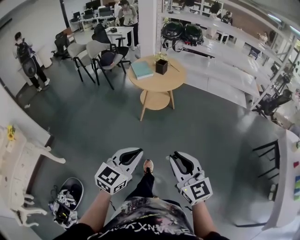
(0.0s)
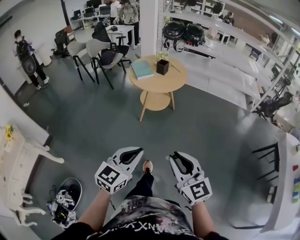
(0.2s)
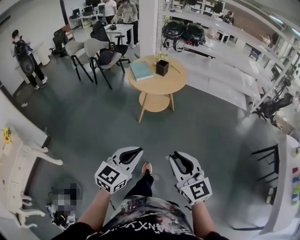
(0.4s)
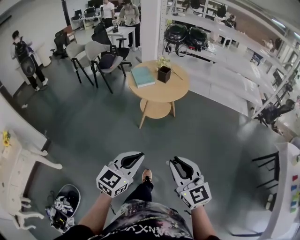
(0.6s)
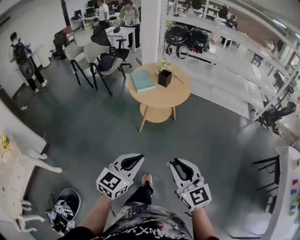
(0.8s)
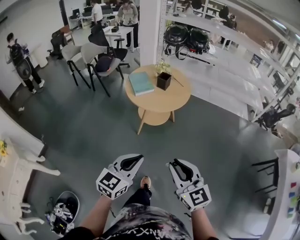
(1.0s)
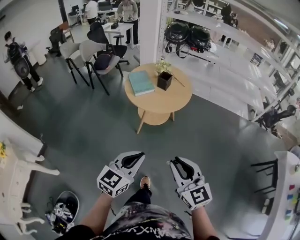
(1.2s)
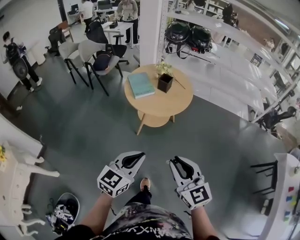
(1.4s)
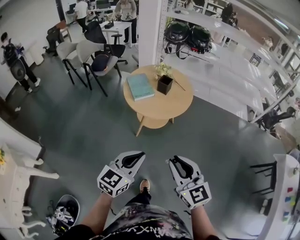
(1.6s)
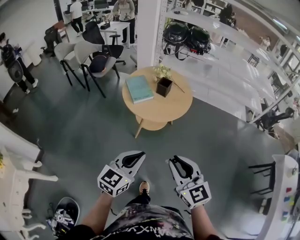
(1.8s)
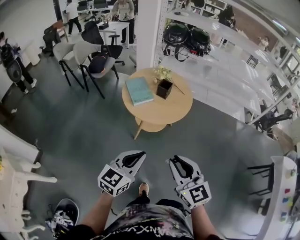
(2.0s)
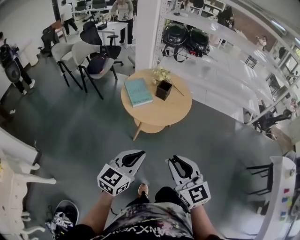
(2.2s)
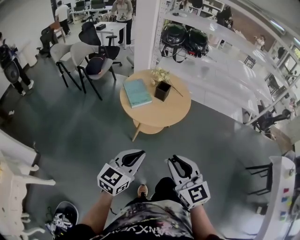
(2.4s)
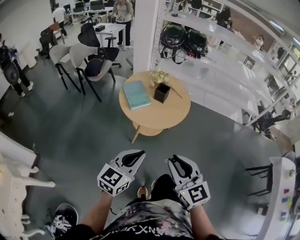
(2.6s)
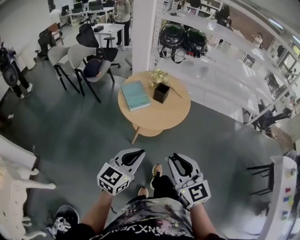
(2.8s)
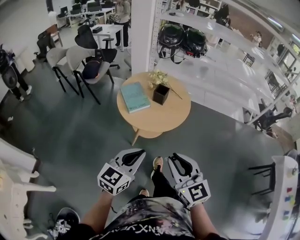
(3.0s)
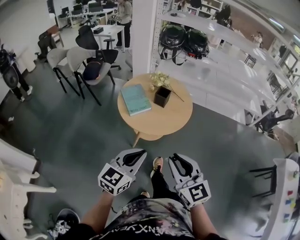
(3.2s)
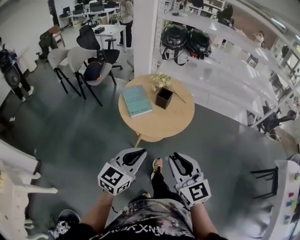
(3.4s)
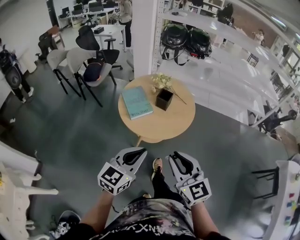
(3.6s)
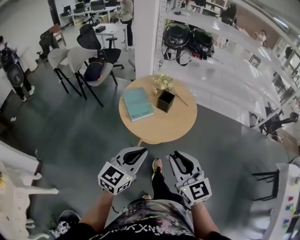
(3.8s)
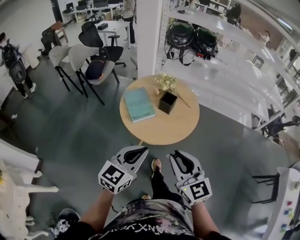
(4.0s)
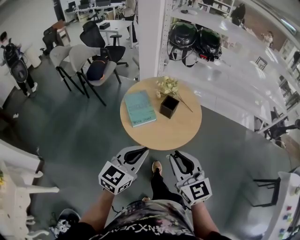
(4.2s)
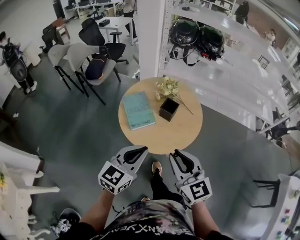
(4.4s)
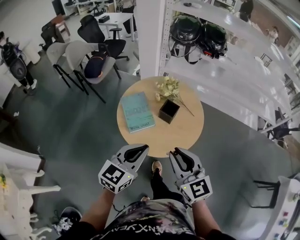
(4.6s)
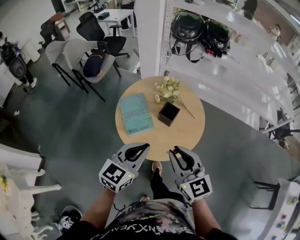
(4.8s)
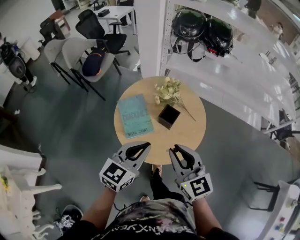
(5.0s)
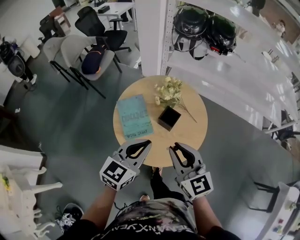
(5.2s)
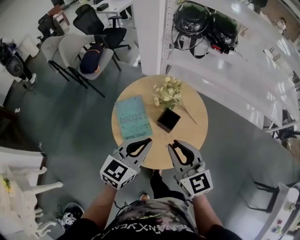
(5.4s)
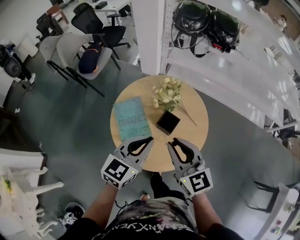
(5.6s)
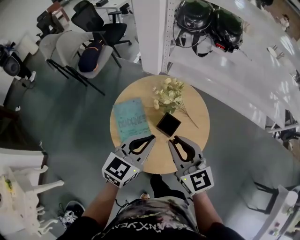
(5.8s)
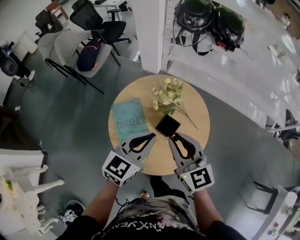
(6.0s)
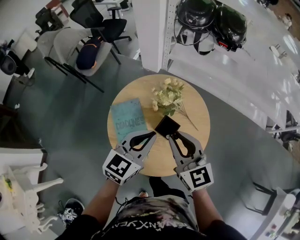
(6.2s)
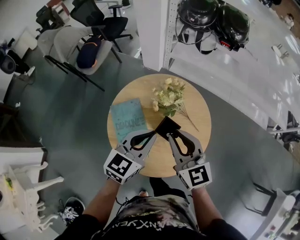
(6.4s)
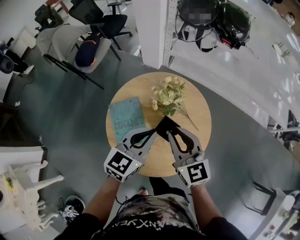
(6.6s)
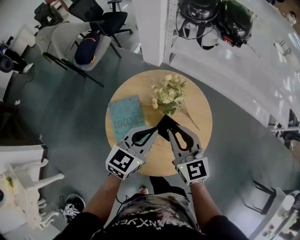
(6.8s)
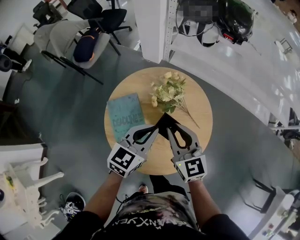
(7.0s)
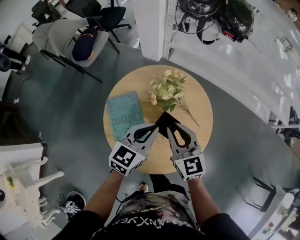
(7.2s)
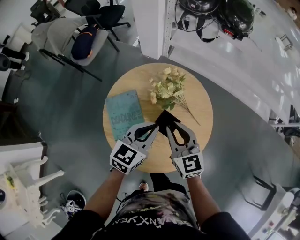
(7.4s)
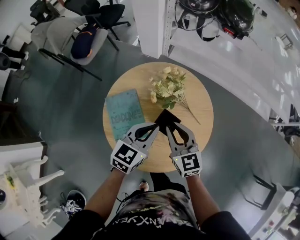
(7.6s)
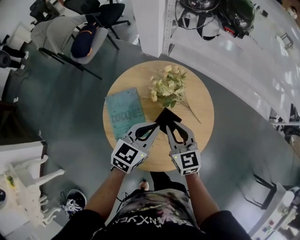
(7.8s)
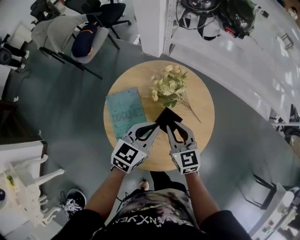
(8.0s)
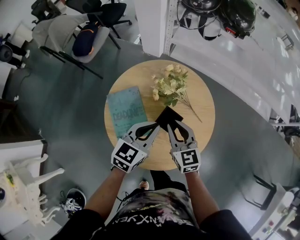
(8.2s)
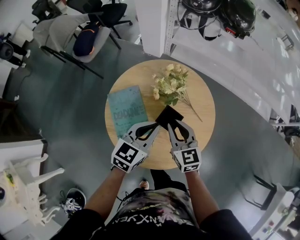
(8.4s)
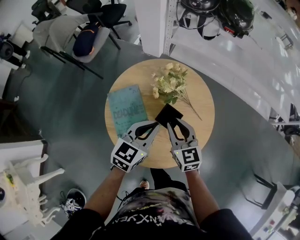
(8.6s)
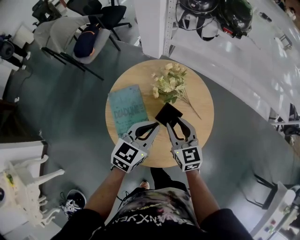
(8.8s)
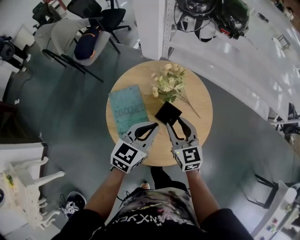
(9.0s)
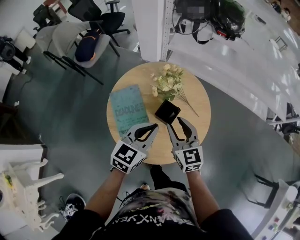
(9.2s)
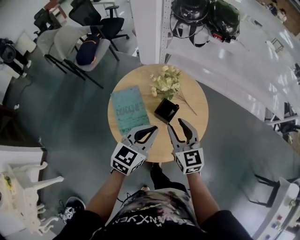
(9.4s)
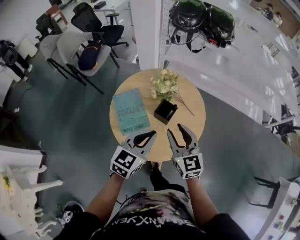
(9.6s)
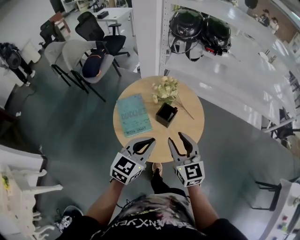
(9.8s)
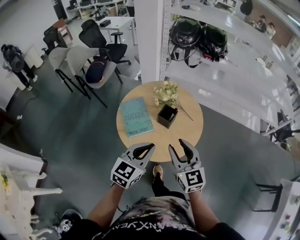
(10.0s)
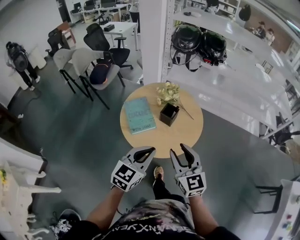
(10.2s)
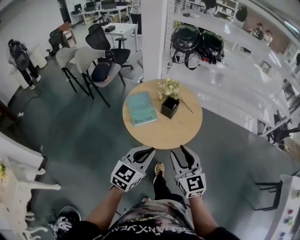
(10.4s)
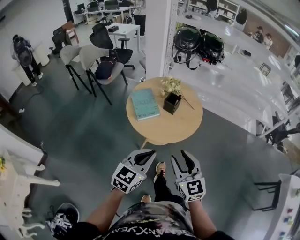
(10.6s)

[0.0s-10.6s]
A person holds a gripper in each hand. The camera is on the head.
0.0s to 1.6s: The two grippers go roughly 30 cm forward.
1.6s to 3.0s: The grippers both shift forward by approximately 10 cm.
3.0s to 4.6s: The two grippers go roughly 25 cm forward.
4.6s to 6.0s: The two grippers go approximately 25 cm forward.
6.0s to 7.6s: Both grippers move downward, roughly 10 cm.
7.6s to 9.0s: The grippers move only a little.
9.0s to 10.6s: Both grippers move backward, about 40 cm.

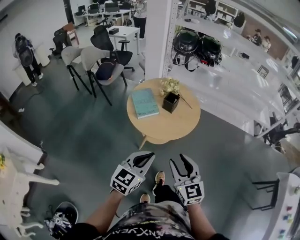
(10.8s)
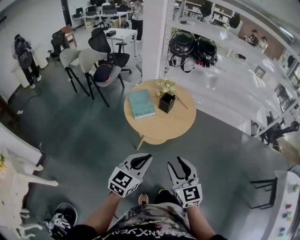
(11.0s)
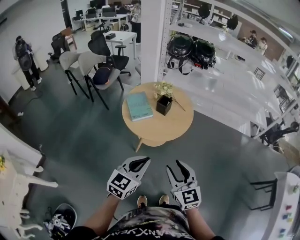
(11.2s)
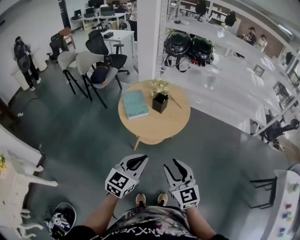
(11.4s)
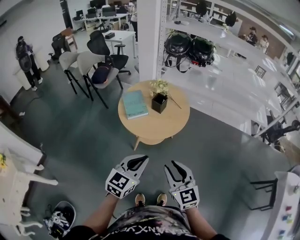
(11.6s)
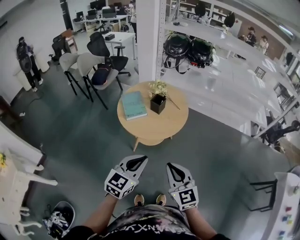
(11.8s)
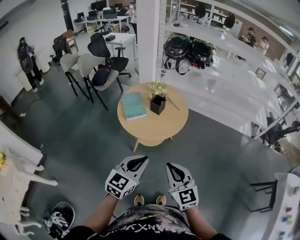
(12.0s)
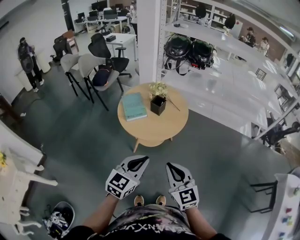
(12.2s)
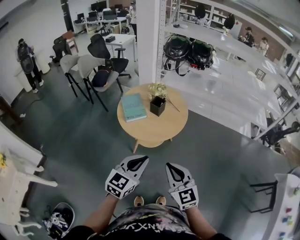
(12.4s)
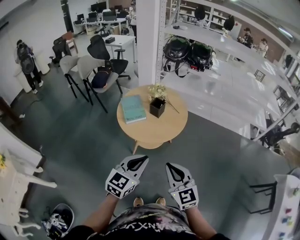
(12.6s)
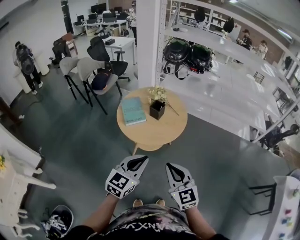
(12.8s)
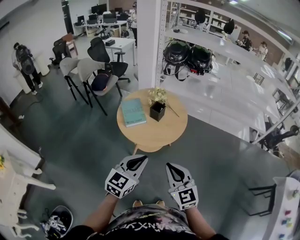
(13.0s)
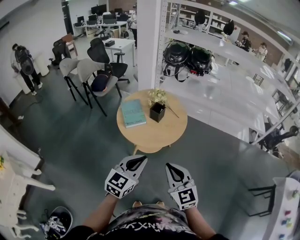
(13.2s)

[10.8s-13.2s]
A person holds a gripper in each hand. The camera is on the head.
10.8s to 12.0s: The grippers both shift to the right by about 10 cm. The right gripper closes.
12.0s to 13.2s: The grippers stay close to where they were, moving slightly.

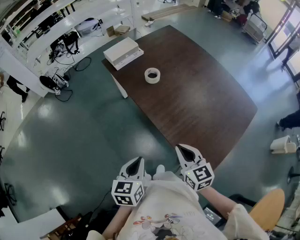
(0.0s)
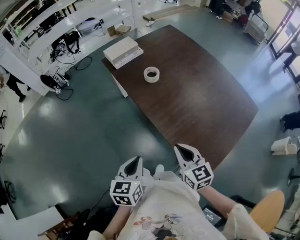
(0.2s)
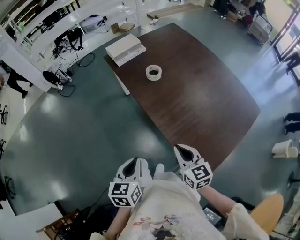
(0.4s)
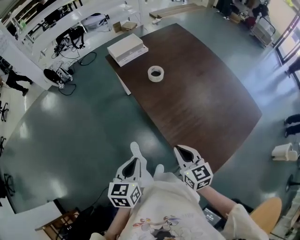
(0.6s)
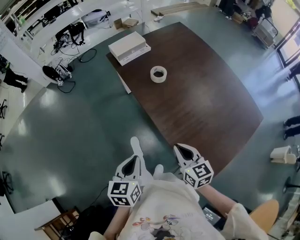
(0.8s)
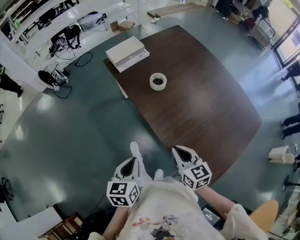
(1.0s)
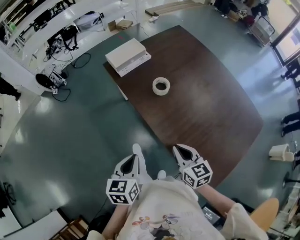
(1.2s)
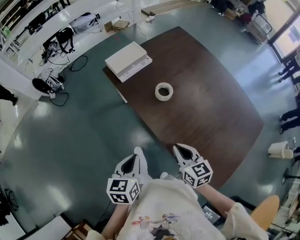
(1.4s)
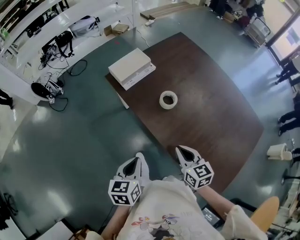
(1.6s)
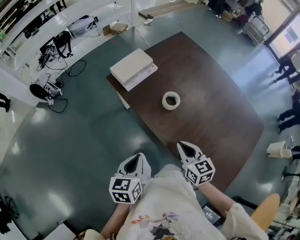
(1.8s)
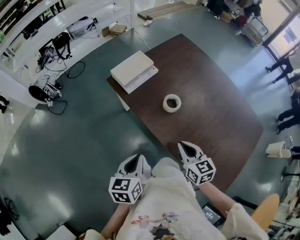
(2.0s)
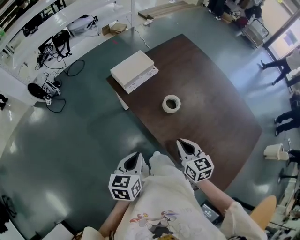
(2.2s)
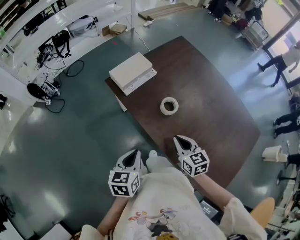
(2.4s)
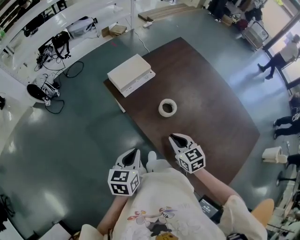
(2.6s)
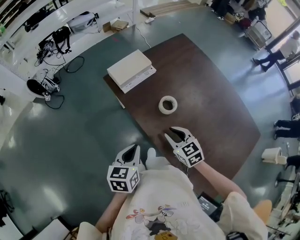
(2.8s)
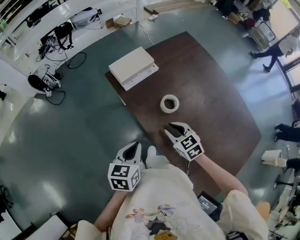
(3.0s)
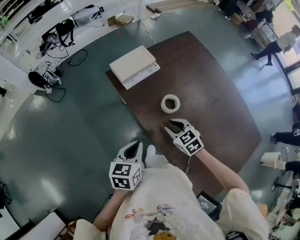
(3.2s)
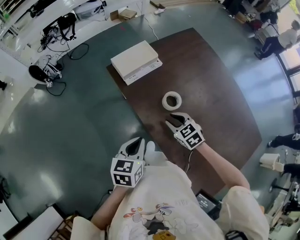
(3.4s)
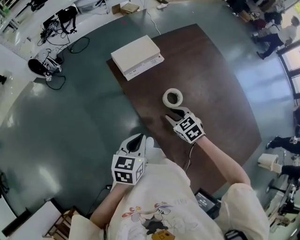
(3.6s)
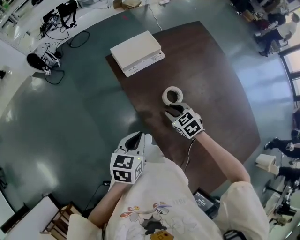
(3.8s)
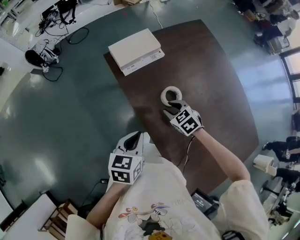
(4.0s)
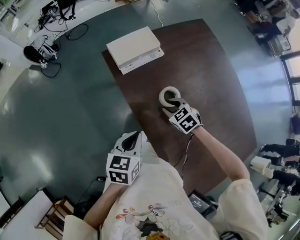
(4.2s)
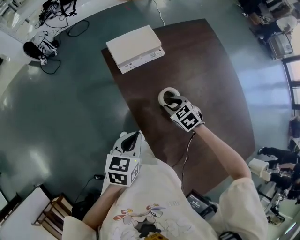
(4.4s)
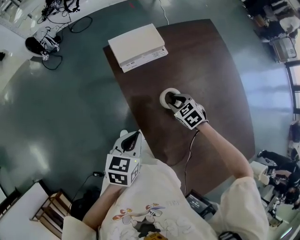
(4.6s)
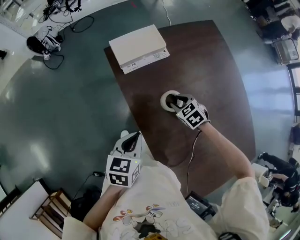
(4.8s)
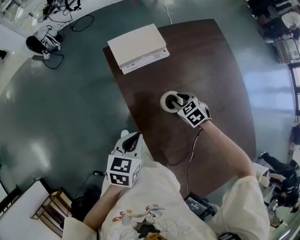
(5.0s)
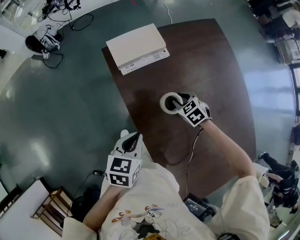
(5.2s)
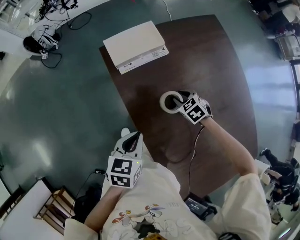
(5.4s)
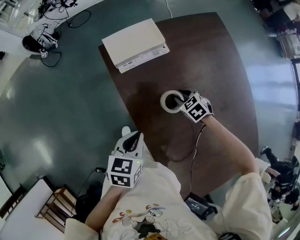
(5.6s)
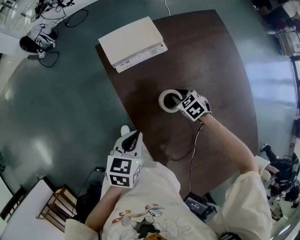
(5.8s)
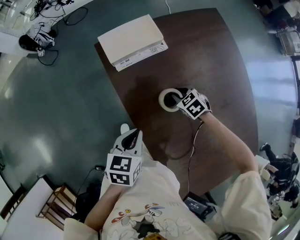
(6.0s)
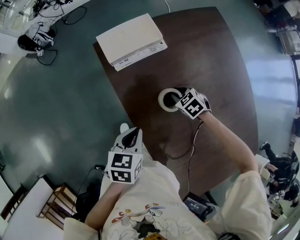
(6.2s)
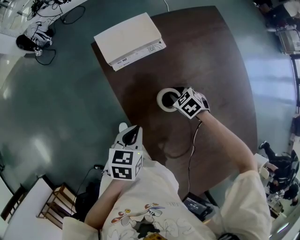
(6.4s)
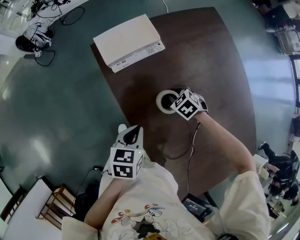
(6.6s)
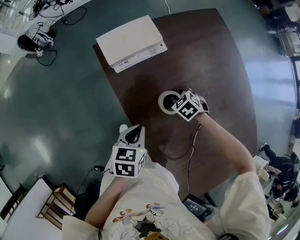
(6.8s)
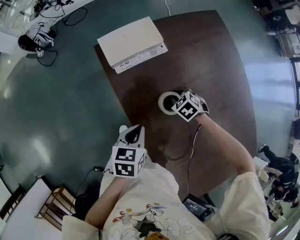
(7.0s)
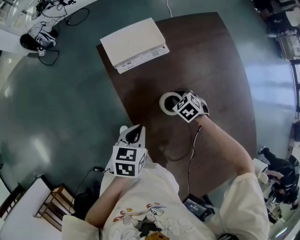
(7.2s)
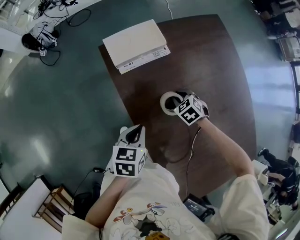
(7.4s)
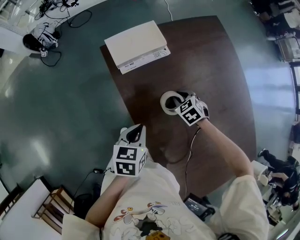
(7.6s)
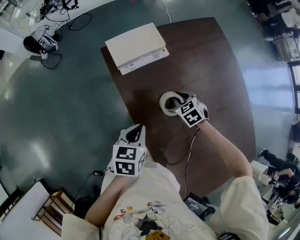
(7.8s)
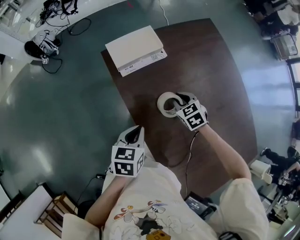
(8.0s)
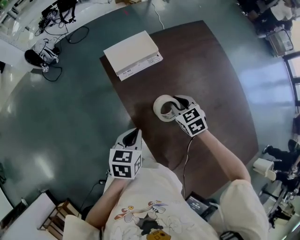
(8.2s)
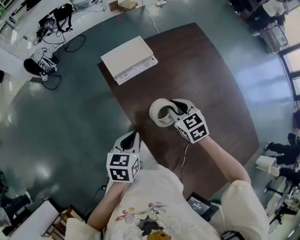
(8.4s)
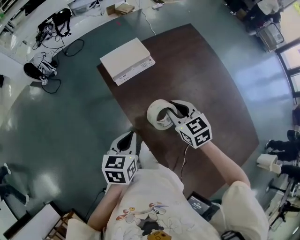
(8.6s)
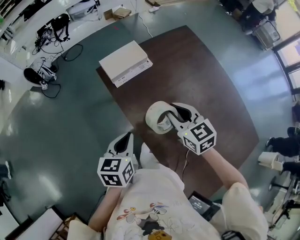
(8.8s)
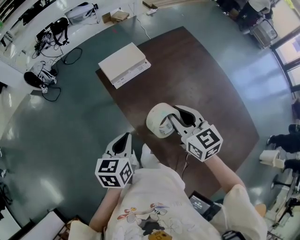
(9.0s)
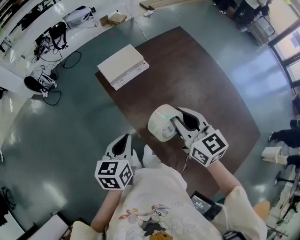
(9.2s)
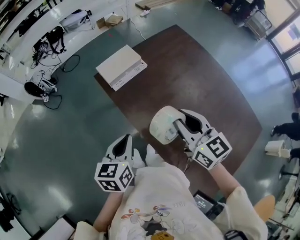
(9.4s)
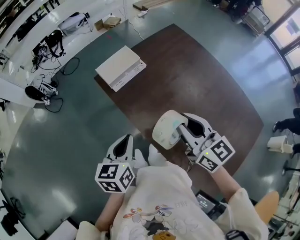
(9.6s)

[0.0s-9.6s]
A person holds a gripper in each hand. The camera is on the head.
0.0s to 1.6s: The left gripper heads forward and to the left, covering about 25 cm; the right gripper is displaced forward by some 25 cm.
1.6s to 3.2s: The right gripper travels forward and downward by some 20 cm, changes its angle by roughly 30 degrees, and opens its fingers. The left gripper moves forward, approximately 10 cm.
3.2s to 4.8s: The left gripper moves forward and to the right, about 10 cm; the right gripper is displaced forward, downward and to the right by some 20 cm, and changes its angle by about 20 degrees.
4.8s to 6.4s: The grippers both shift downward by about 5 cm.
6.4s to 8.0s: The right gripper is displaced upward by some 10 cm.
8.0s to 9.6s: The left gripper is displaced upward and backward by roughly 15 cm. Meanwhile the right gripper travels upward and backward by some 35 cm, and tilts its fingers some 40 degrees upward.

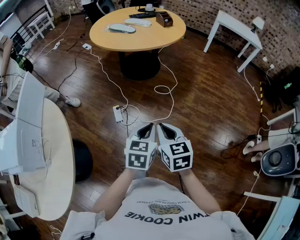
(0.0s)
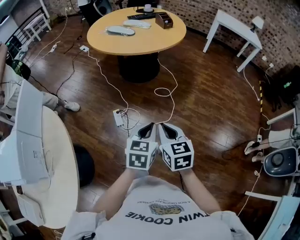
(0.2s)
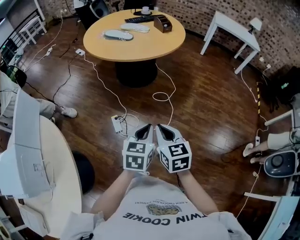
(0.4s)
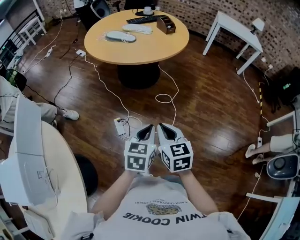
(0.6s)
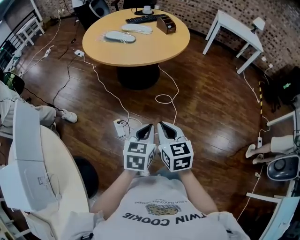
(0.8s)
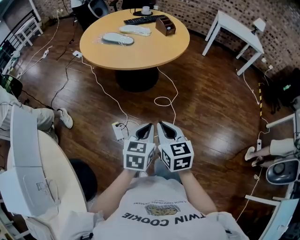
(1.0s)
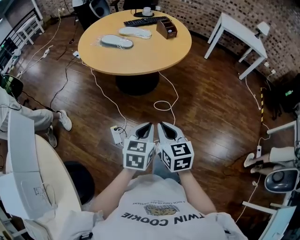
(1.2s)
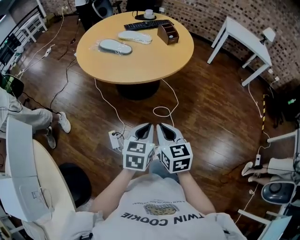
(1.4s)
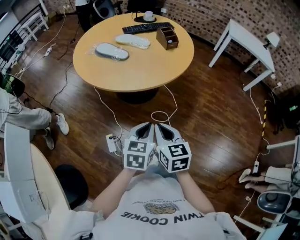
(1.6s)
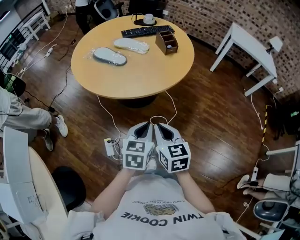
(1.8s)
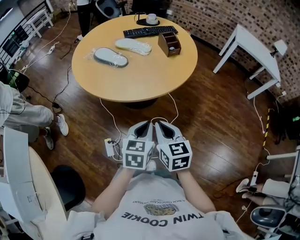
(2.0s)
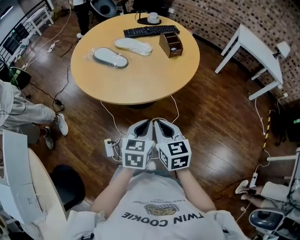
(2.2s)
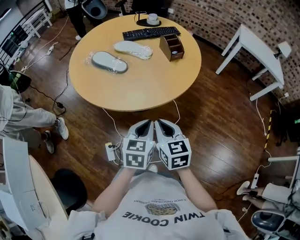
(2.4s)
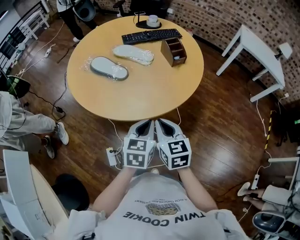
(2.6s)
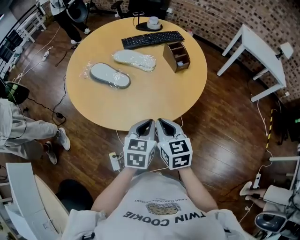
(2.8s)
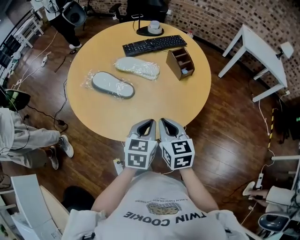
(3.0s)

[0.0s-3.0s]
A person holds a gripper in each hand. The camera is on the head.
0.0s to 1.6s: Both grippers are carried forward, about 40 cm.
1.6s to 3.0s: Both grippers travel together forward, approximately 30 cm.
